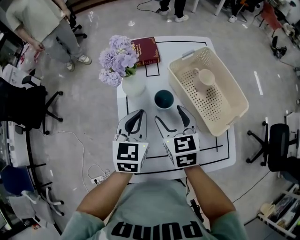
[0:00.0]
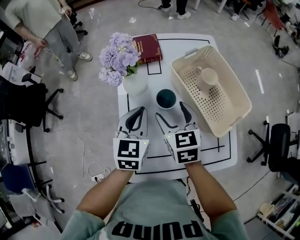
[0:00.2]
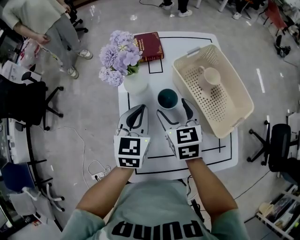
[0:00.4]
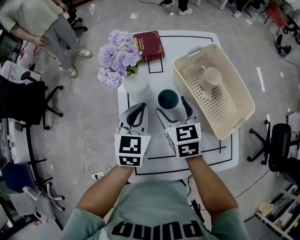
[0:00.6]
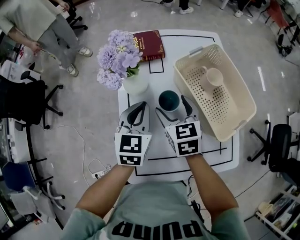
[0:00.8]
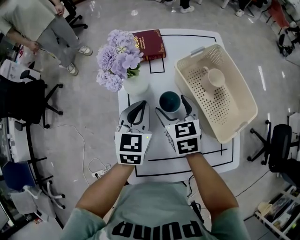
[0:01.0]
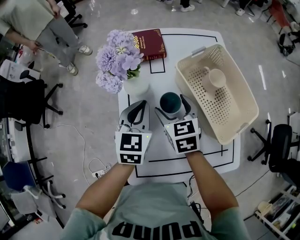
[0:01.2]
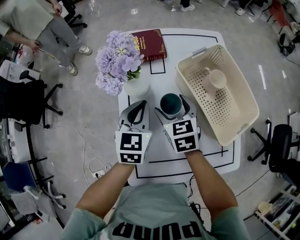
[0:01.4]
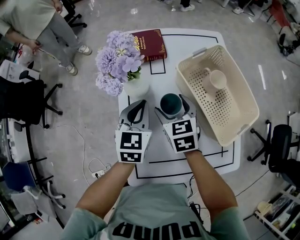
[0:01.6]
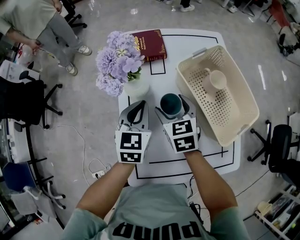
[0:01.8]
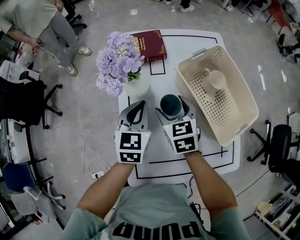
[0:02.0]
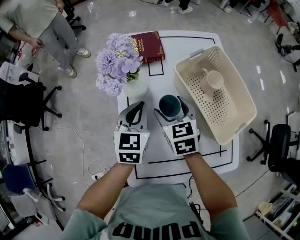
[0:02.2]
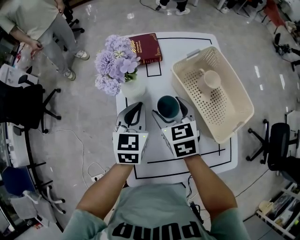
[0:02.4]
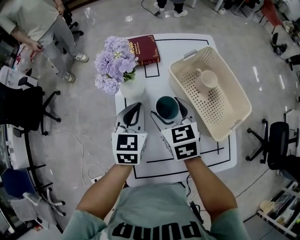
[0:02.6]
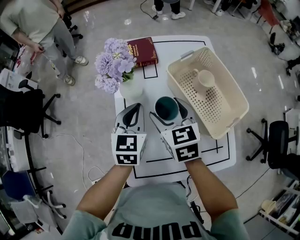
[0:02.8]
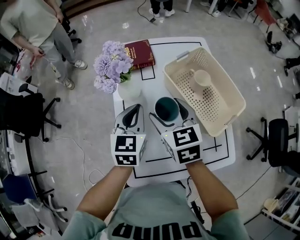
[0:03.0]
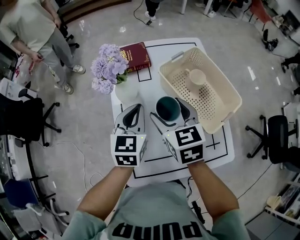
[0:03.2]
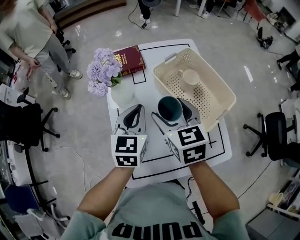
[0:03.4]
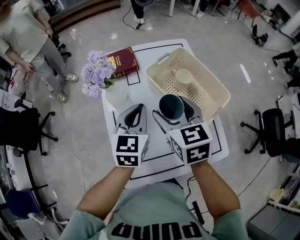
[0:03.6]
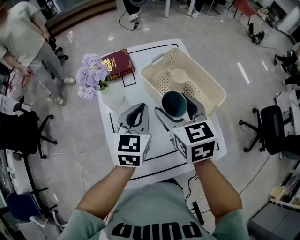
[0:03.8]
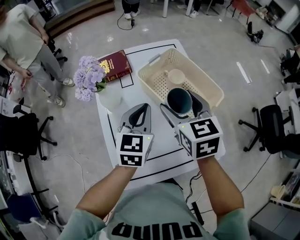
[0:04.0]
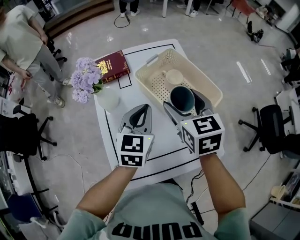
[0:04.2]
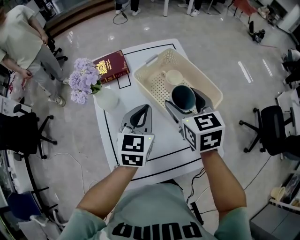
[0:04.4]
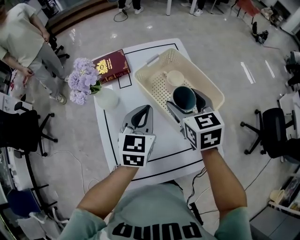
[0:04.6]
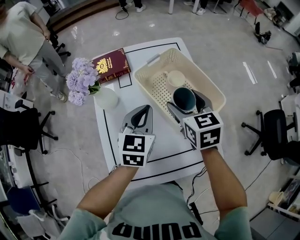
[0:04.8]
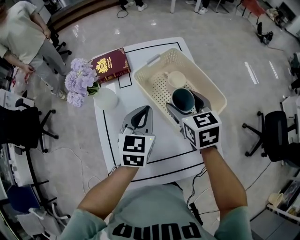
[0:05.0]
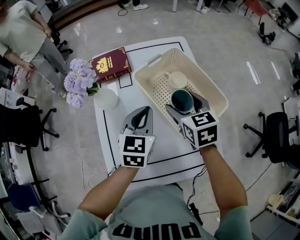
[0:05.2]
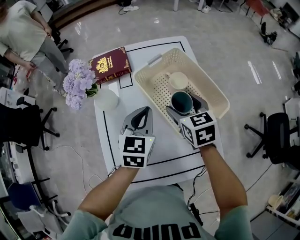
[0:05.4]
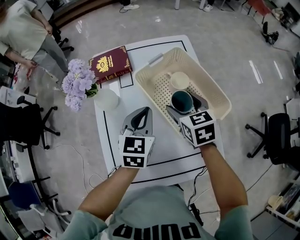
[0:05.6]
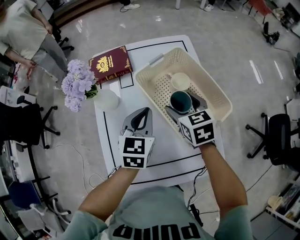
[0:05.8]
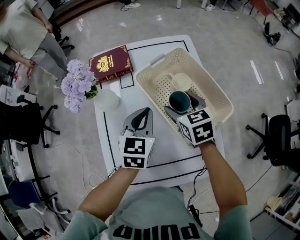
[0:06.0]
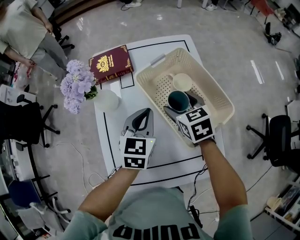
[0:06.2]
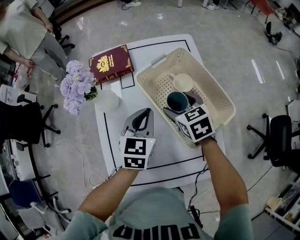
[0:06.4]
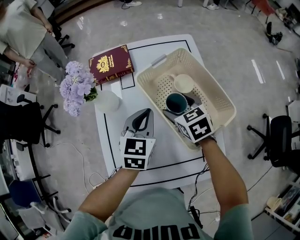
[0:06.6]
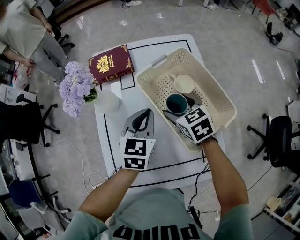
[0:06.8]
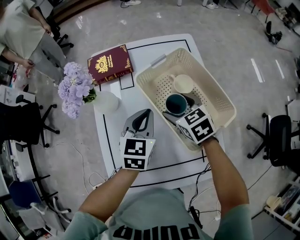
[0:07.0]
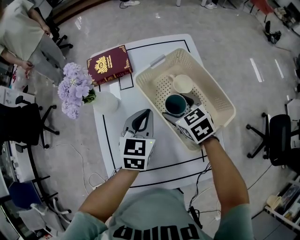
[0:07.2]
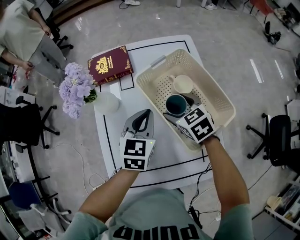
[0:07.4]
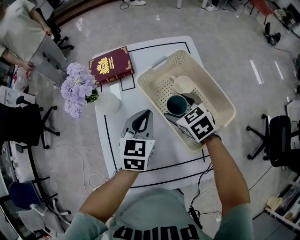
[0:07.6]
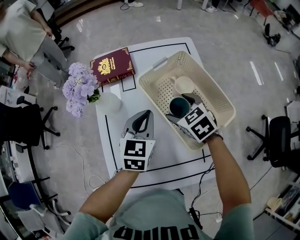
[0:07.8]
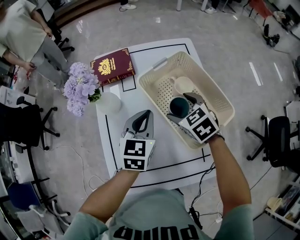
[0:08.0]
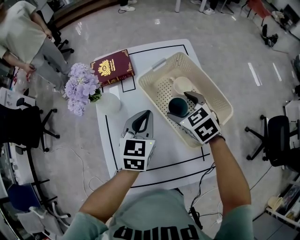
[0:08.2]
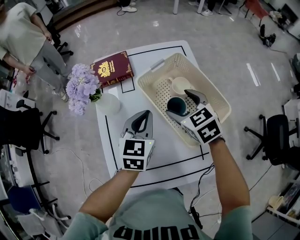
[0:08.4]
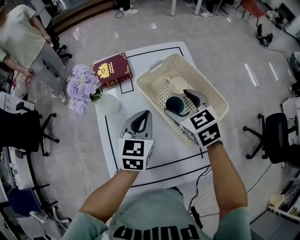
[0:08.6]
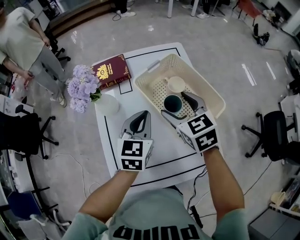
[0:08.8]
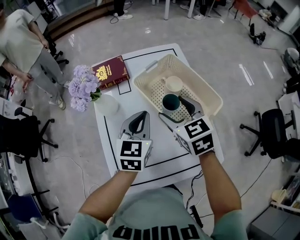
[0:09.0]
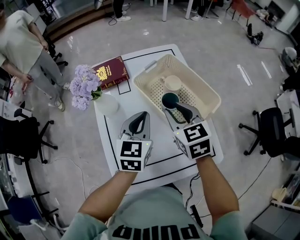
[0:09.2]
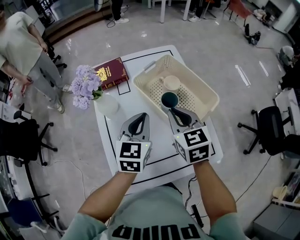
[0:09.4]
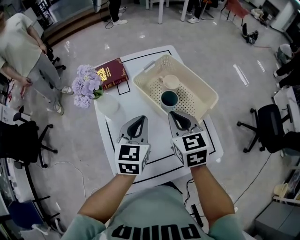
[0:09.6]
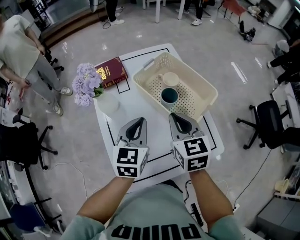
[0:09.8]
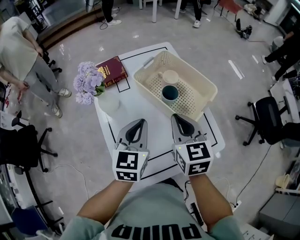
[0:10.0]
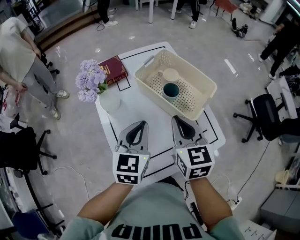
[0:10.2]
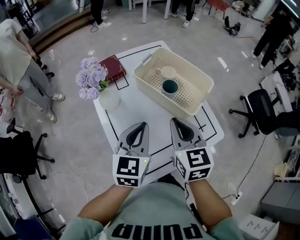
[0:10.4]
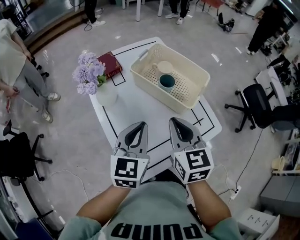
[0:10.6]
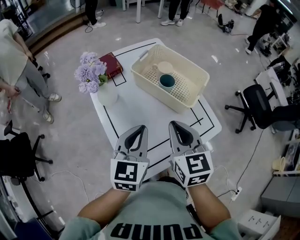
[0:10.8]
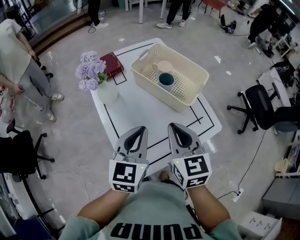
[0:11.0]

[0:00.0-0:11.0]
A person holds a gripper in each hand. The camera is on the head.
0:00.0 to 0:01.6: The right gripper is displaced forward and downward by some 10 cm. The left gripper goes about 5 cm forward.
0:01.6 to 0:03.2: The right gripper goes about 15 cm upward and backward, while the left gripper is displaced upward by approximately 5 cm.
0:03.2 to 0:04.8: Both grippers travel together to the right, some 15 cm.
0:04.8 to 0:06.2: The left gripper ends up approximately 5 cm from where it was; the right gripper moves downward, approximately 10 cm.
0:06.2 to 0:07.8: The grippers make only small movements.
0:07.8 to 0:09.4: The left gripper moves backward and upward, approximately 10 cm; the right gripper goes some 15 cm upward and backward, rotates roughly 30 degrees, and closes its fingers.
0:09.4 to 0:11.0: The grippers both shift backward by some 15 cm.

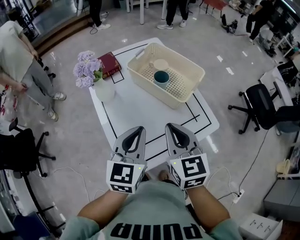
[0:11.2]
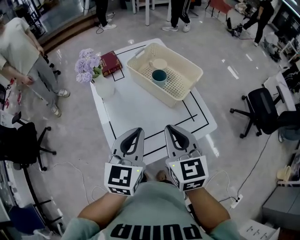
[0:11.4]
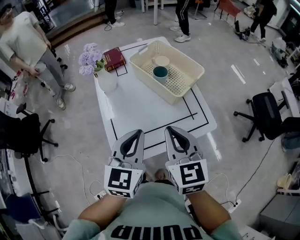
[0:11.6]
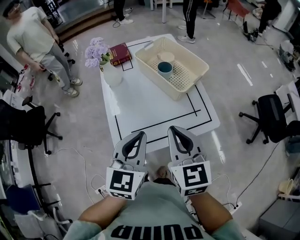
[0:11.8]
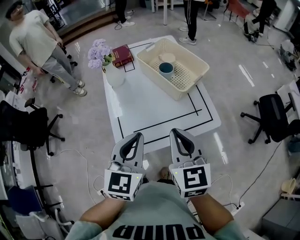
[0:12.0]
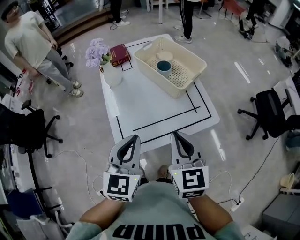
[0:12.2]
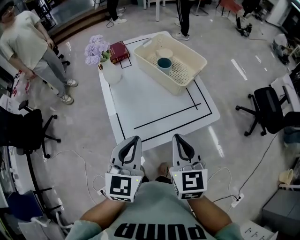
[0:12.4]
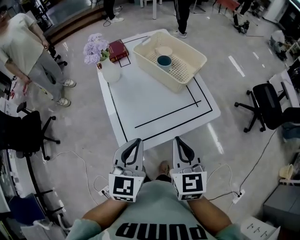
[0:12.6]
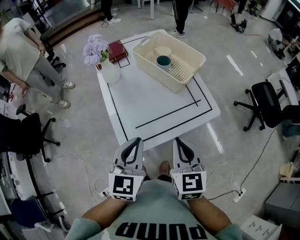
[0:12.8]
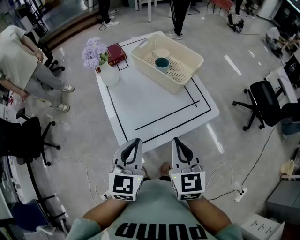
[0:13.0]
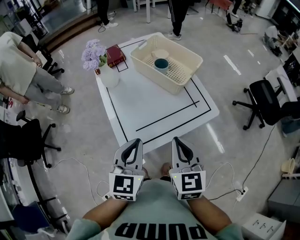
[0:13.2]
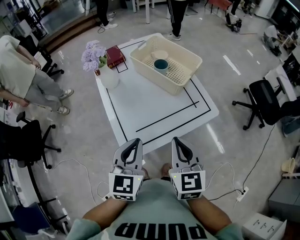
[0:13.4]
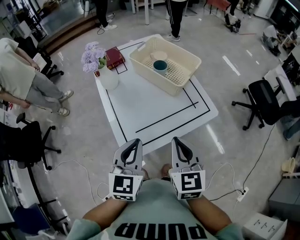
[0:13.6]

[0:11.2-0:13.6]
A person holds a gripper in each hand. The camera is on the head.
0:11.2 to 0:12.4: Both grippers travel together backward, roughly 15 cm.
0:12.4 to 0:13.6: The grippers move only a little.

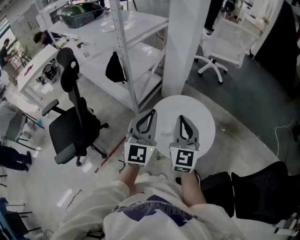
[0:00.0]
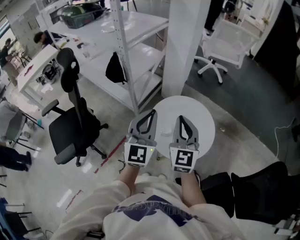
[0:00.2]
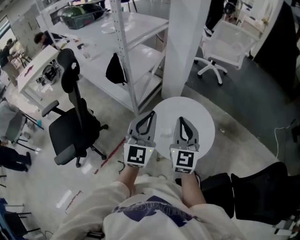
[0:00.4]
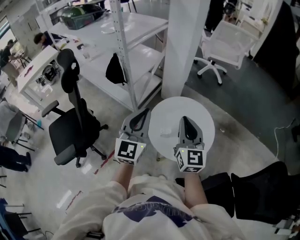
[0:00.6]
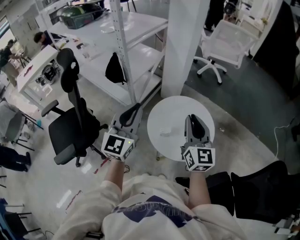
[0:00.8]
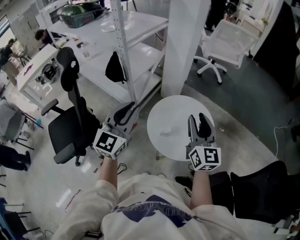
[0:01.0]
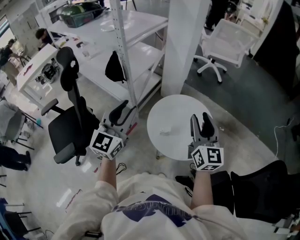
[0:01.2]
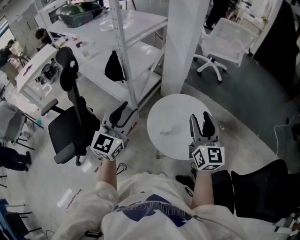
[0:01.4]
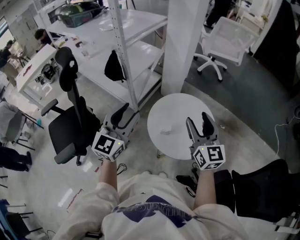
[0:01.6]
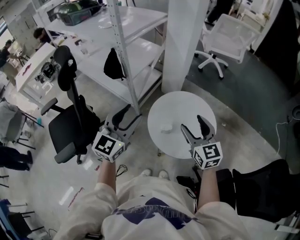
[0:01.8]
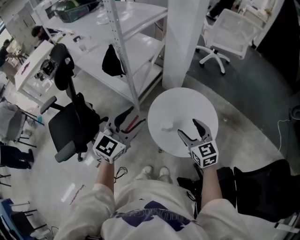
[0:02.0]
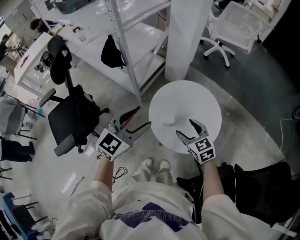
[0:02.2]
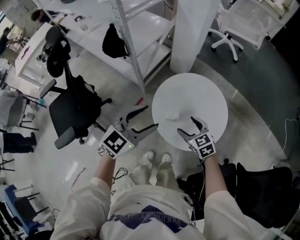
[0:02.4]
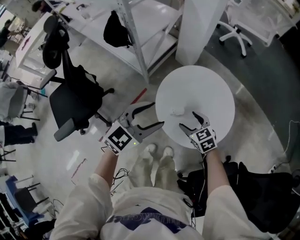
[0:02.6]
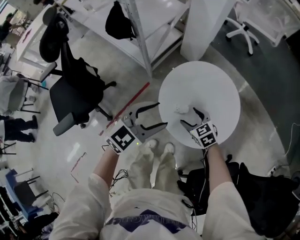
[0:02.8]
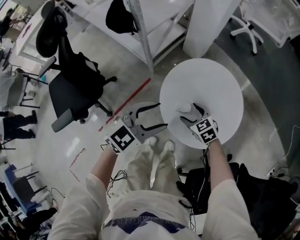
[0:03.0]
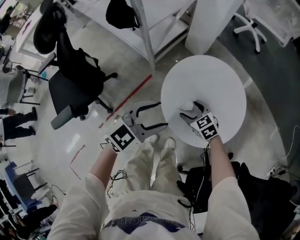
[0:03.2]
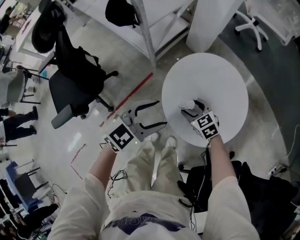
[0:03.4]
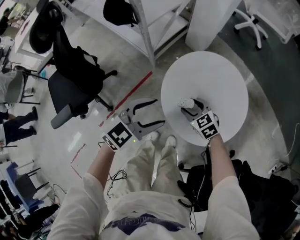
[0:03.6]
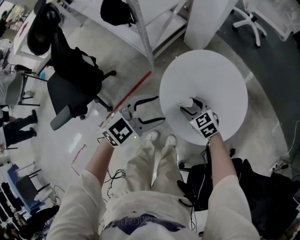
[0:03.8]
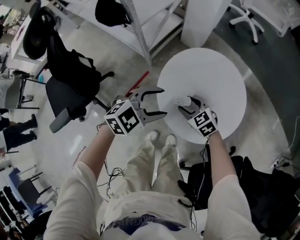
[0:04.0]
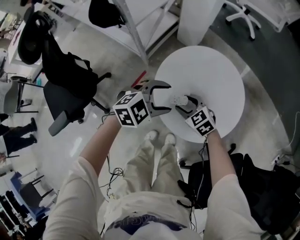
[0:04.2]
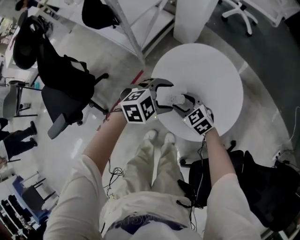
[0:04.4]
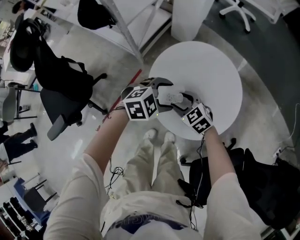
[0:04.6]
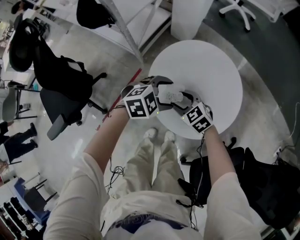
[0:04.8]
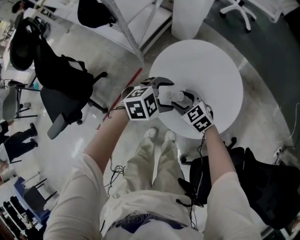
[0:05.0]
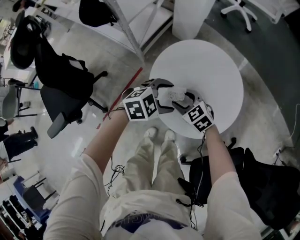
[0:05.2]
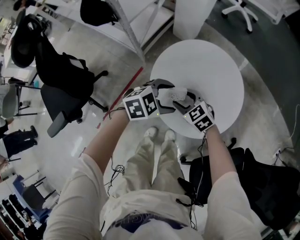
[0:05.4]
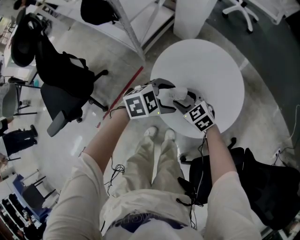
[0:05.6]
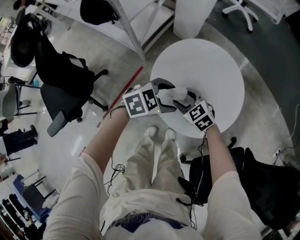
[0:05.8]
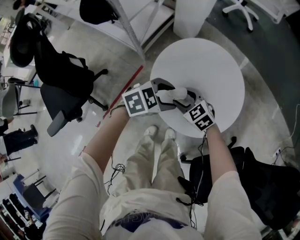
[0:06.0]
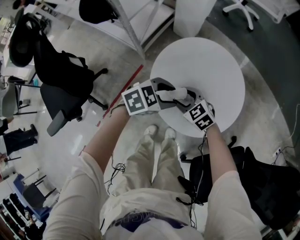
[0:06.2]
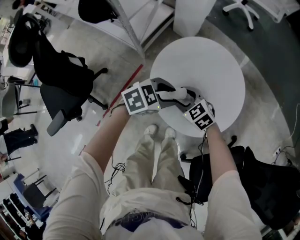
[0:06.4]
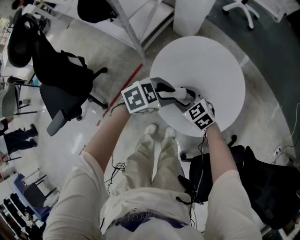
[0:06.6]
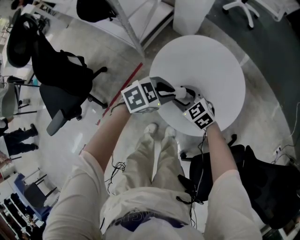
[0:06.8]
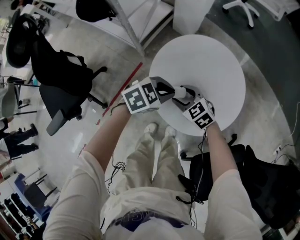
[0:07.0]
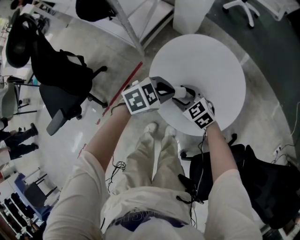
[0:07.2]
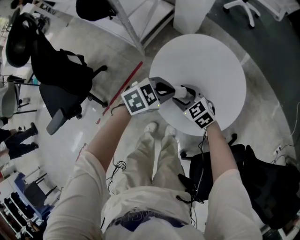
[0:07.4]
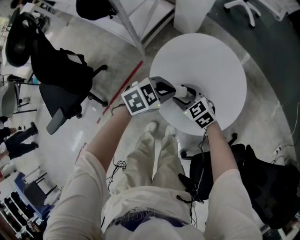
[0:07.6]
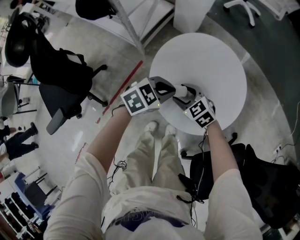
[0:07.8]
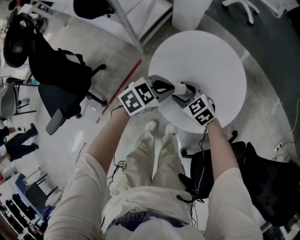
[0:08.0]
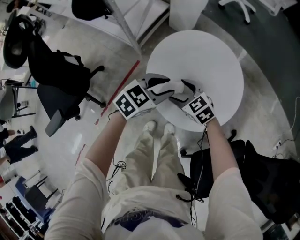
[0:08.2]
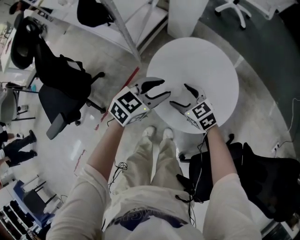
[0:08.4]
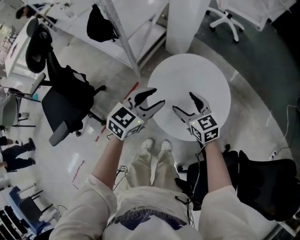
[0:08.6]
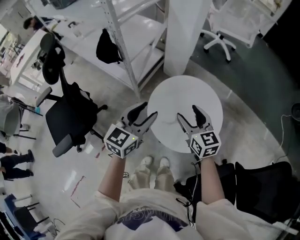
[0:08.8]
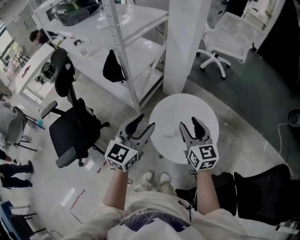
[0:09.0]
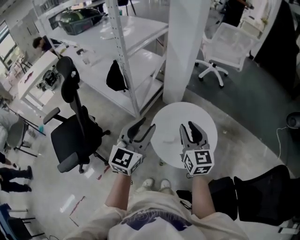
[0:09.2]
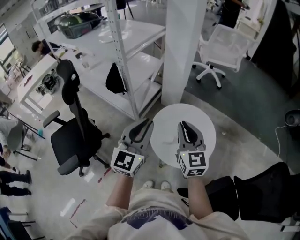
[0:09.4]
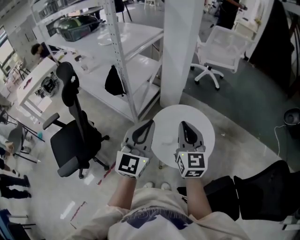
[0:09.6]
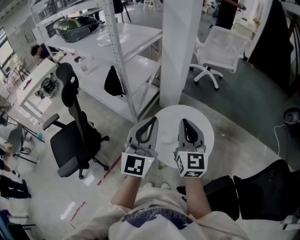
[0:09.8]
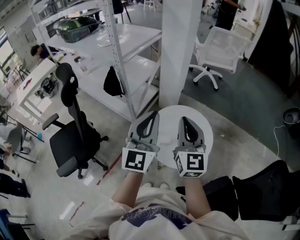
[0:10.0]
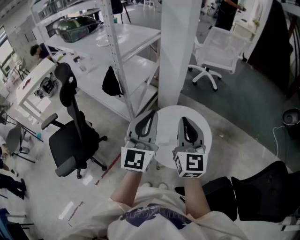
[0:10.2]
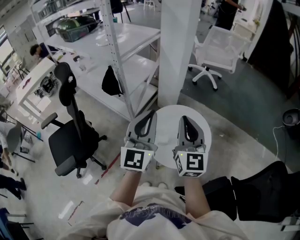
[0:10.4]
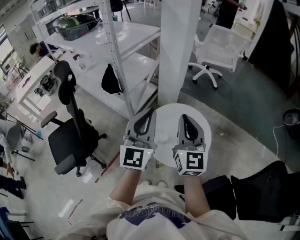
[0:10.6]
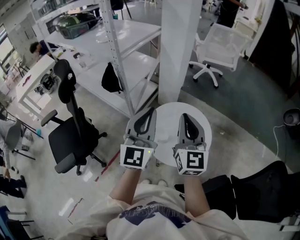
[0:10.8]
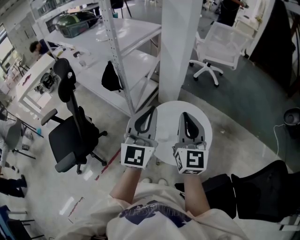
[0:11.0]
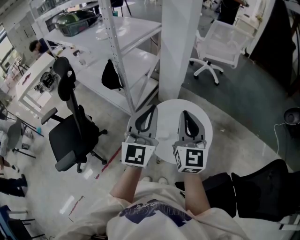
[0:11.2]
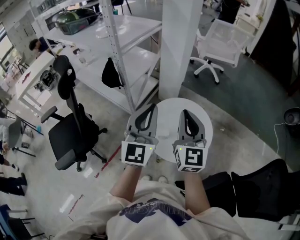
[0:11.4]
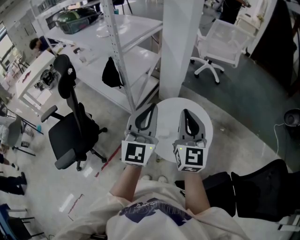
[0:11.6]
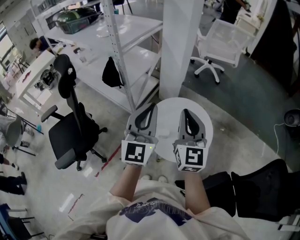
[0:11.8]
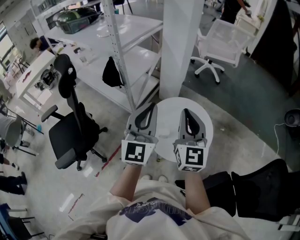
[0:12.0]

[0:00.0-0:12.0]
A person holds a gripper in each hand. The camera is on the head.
0:00.0 to 0:01.6: The right gripper travels to the right by roughly 5 cm, and opens up, while the left gripper shifts some 5 cm to the left, and opens its fingers.
0:01.6 to 0:03.0: The right gripper heads downward, covering about 35 cm, and tips its fingers downward by about 50 degrees, while the left gripper heads downward, covering approximately 20 cm, and changes its angle by approximately 30 degrees.
0:03.0 to 0:04.4: The left gripper is displaced downward by approximately 10 cm, and swivels approximately 30 degrees.
0:04.4 to 0:06.0: The grippers move only a little.
0:06.0 to 0:07.6: The left gripper closes up.
0:07.6 to 0:09.0: The two grippers go about 30 cm upward. The right gripper tips its fingers upward by approximately 30 degrees, while the left gripper angles its fingers upward, by roughly 40 degrees, and opens its fingers.
0:09.0 to 0:10.4: Both grippers travel together upward, roughly 15 cm. The right gripper turns by roughly 20 degrees, and closes. The left gripper rotates approximately 20 degrees, and closes up.
0:10.4 to 0:12.0: Both grippers stay put.
